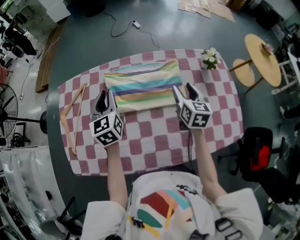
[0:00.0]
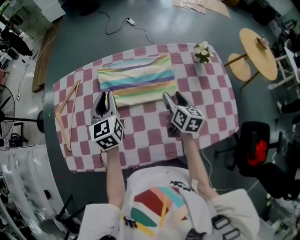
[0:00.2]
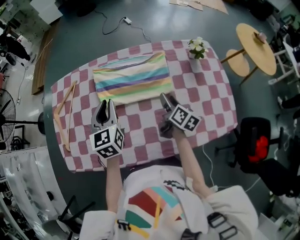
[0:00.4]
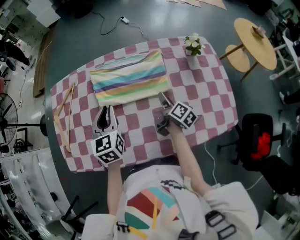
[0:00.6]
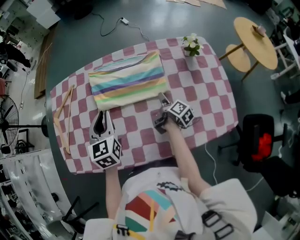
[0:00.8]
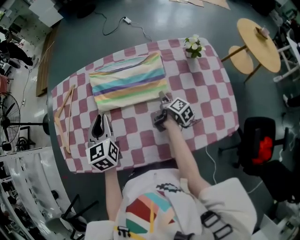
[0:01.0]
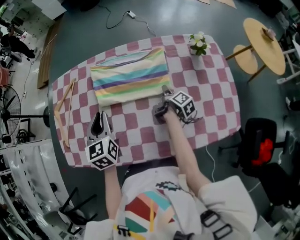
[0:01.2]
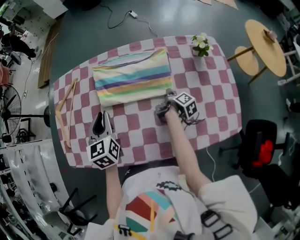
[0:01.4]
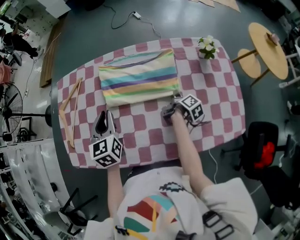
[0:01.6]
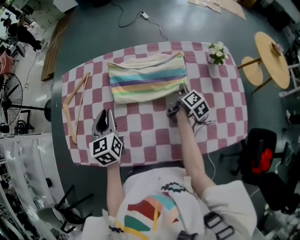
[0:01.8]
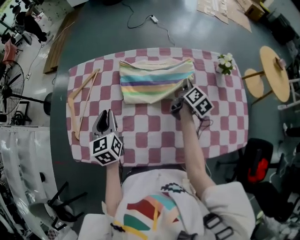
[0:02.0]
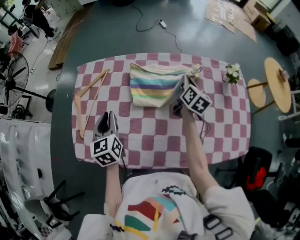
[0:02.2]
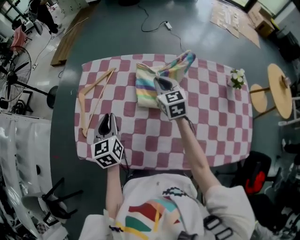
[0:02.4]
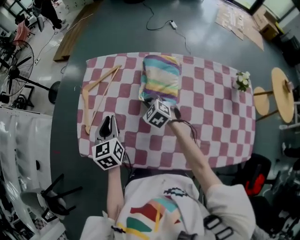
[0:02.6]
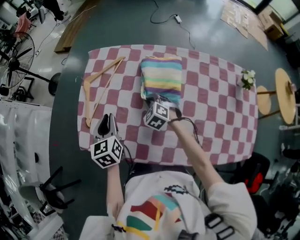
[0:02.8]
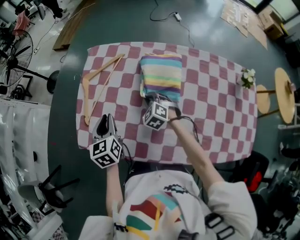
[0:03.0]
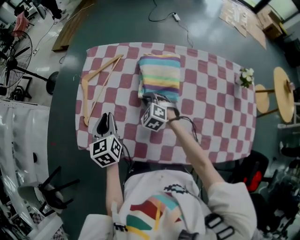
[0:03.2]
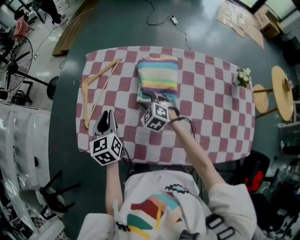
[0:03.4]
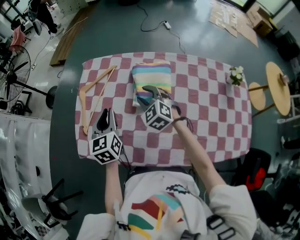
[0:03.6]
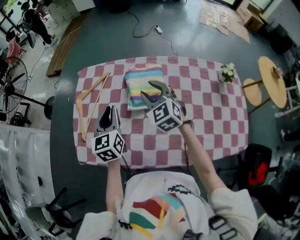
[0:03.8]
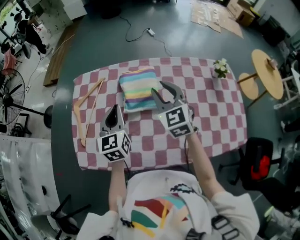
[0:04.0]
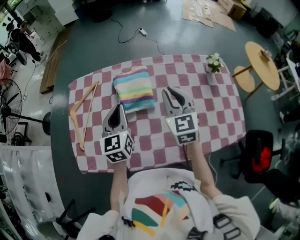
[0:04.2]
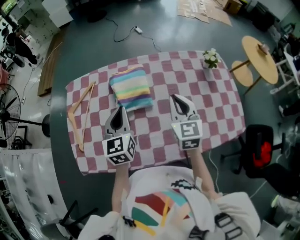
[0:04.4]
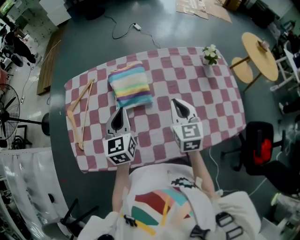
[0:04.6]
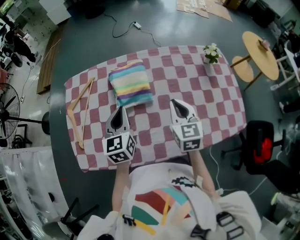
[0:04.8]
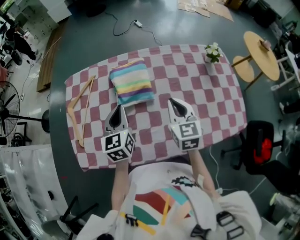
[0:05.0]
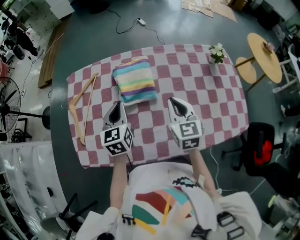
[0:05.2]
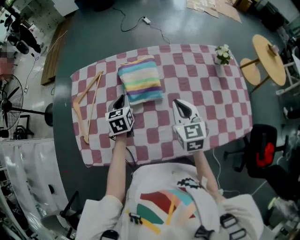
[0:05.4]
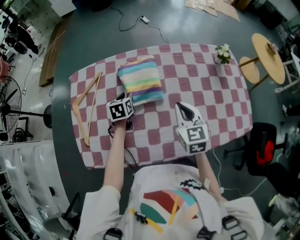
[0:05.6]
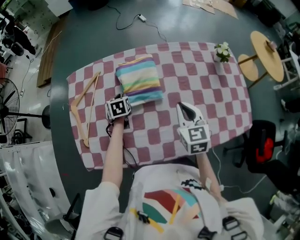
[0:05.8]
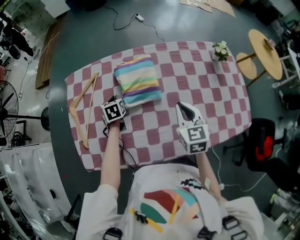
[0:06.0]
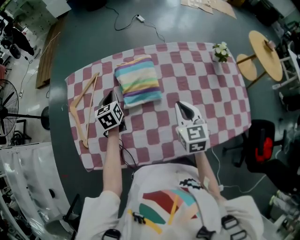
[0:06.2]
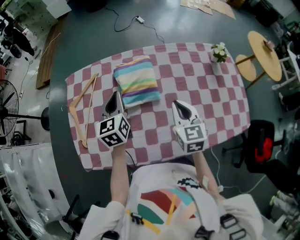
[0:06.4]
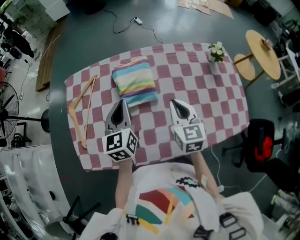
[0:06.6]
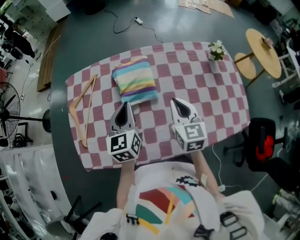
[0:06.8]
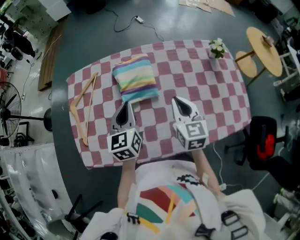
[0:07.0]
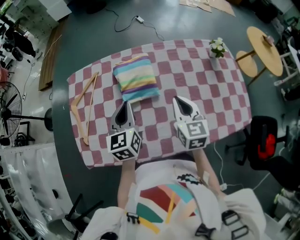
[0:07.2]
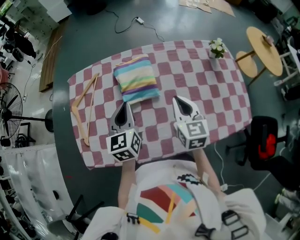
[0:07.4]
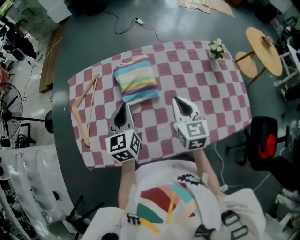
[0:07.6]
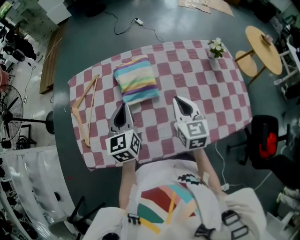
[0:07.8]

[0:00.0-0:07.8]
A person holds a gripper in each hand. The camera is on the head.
0:00.0 to 0:01.6: The left gripper goes roughly 10 cm backward. Meanwhile the right gripper travels downward by roughly 20 cm, rolls clockwise, seen from behind, by roughly 70 degrees, and closes its fingers.
0:01.6 to 0:03.2: The right gripper reaches roughly 15 cm upward, then returns, and twists approximately 140 degrees counterclockwise, seen from behind. Meanwhile the left gripper ends up roughly 20 cm from where it was.
0:03.2 to 0:04.6: The right gripper ends up roughly 30 cm from where it was, rotates about 70 degrees, and opens, then closes again. Meanwhile the left gripper changes place by some 20 cm, and rotates roughly 30 degrees.
0:04.6 to 0:06.2: The left gripper goes approximately 20 cm downward, forward and to the left, and opens, then closes again.
0:06.2 to 0:07.8: The left gripper goes approximately 20 cm upward, backward and to the right.

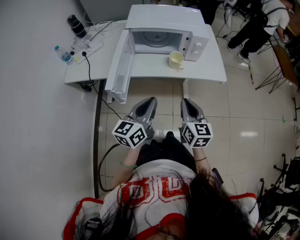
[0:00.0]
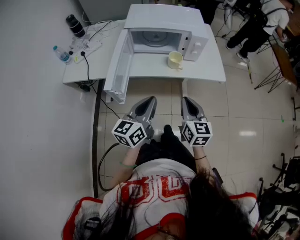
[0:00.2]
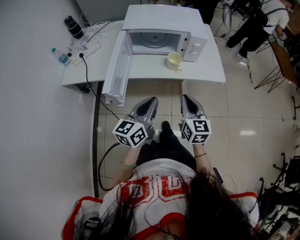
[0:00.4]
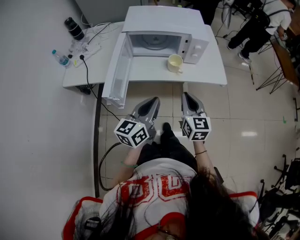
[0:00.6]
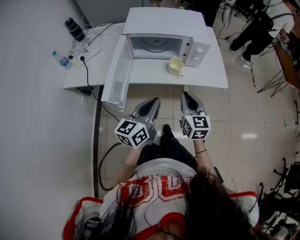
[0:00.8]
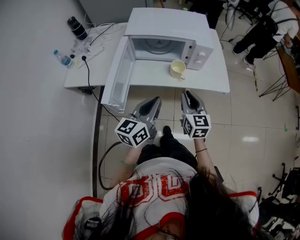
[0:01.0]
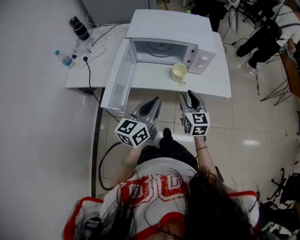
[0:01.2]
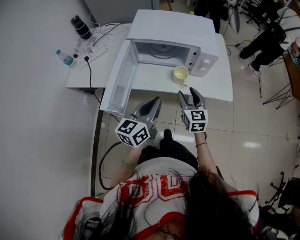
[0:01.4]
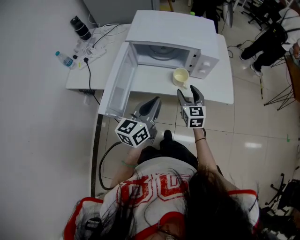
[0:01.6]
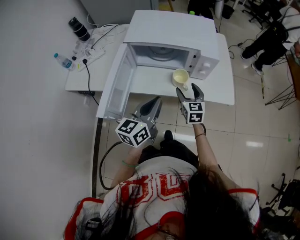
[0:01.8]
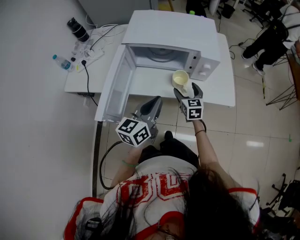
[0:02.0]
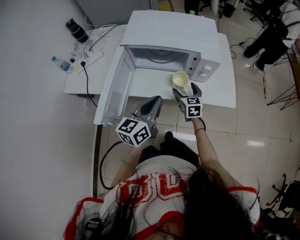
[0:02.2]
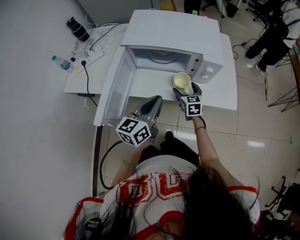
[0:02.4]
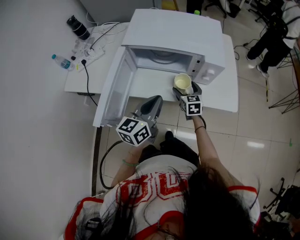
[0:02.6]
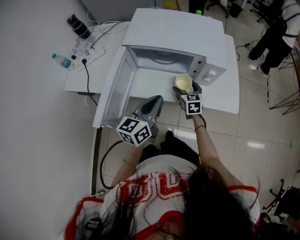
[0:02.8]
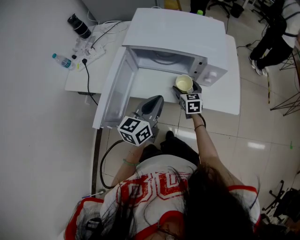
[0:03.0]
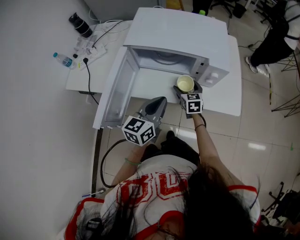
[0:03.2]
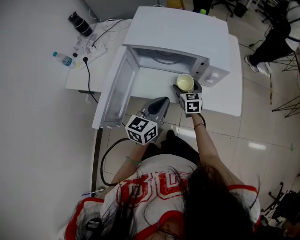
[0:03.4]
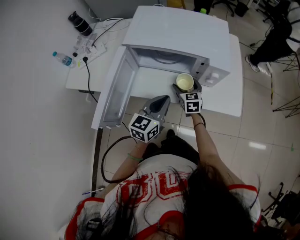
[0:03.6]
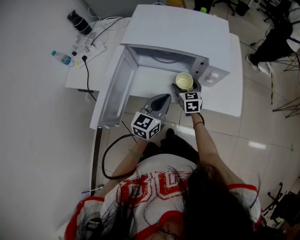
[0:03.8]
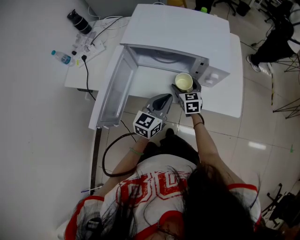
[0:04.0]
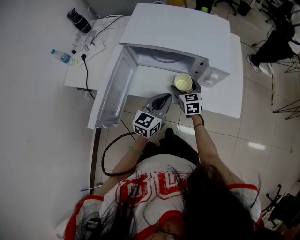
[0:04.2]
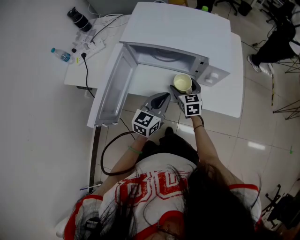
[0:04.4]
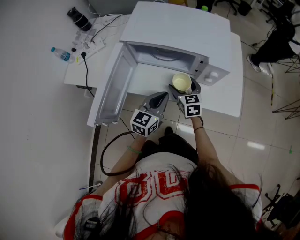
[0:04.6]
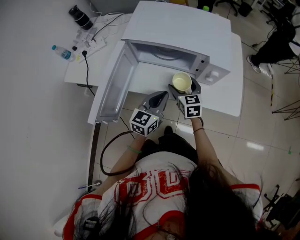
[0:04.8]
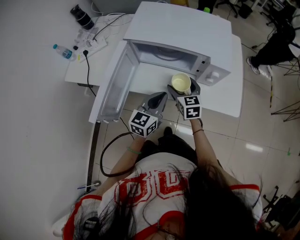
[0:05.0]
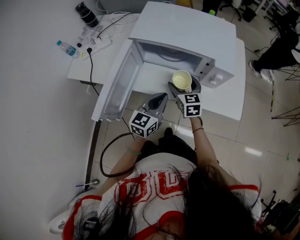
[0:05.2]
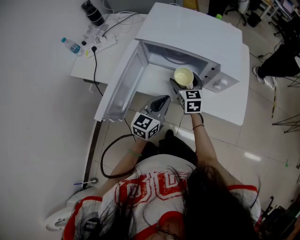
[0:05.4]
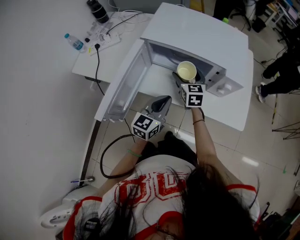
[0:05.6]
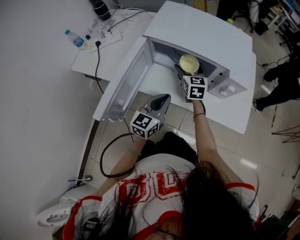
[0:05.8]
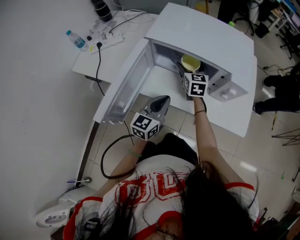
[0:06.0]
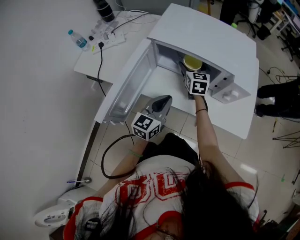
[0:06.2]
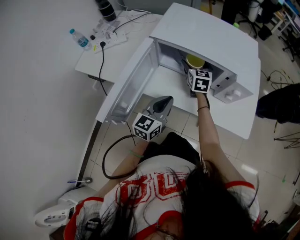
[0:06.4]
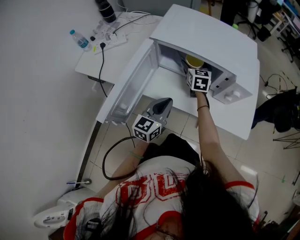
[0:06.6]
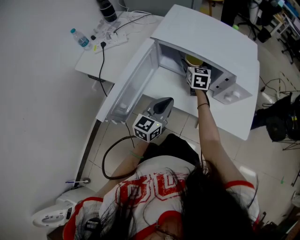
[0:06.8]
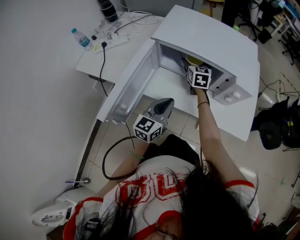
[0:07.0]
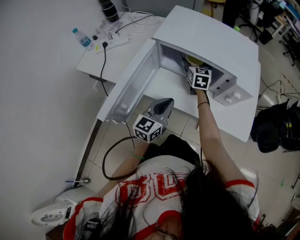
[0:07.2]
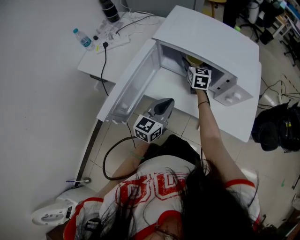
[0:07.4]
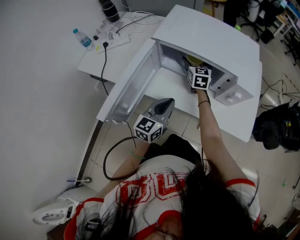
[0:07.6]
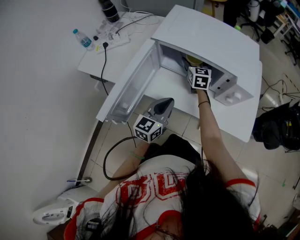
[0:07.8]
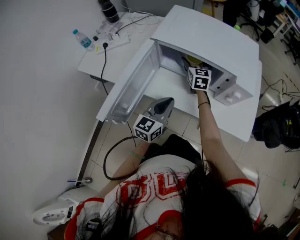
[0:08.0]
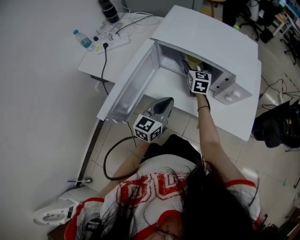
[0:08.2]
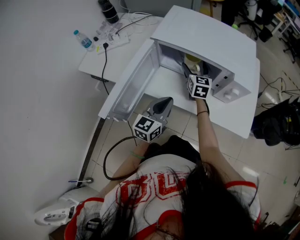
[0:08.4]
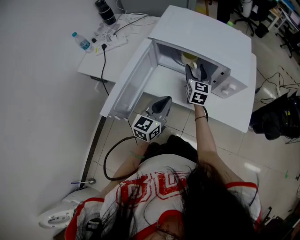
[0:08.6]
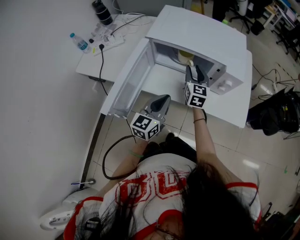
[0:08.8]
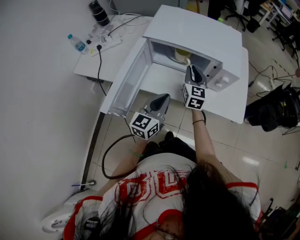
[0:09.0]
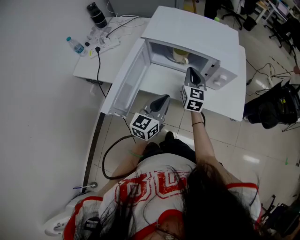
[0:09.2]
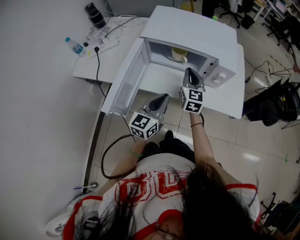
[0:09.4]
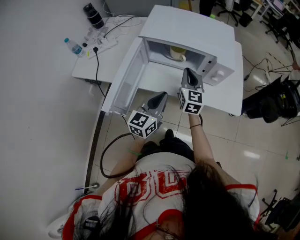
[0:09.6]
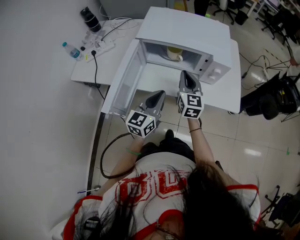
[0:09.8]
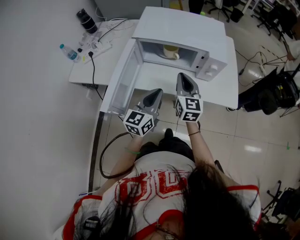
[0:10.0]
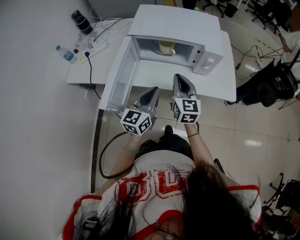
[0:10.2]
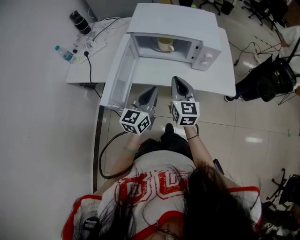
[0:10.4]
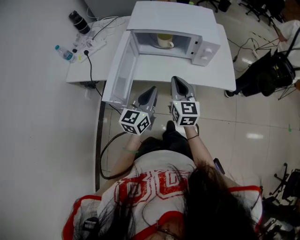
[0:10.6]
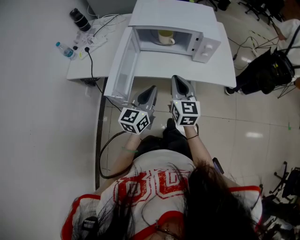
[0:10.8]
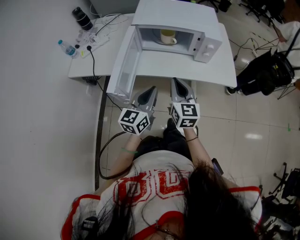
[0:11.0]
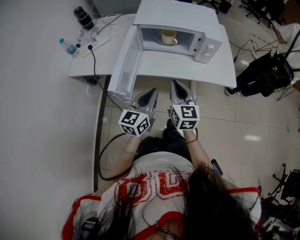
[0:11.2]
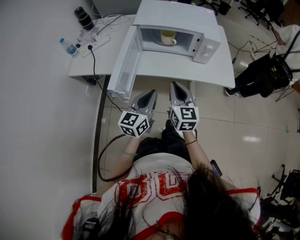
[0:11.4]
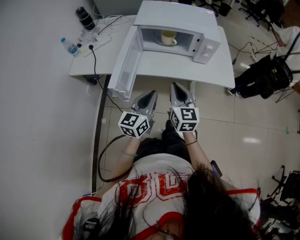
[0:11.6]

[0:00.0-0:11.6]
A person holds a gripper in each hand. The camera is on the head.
0:00.0 to 0:01.4: The right gripper heads forward, covering about 15 cm, and opens, while the left gripper shifts roughly 10 cm forward.
0:01.4 to 0:02.8: The left gripper travels forward by approximately 10 cm. Meanwhile the right gripper moves forward and downward, about 15 cm, and opens up.
0:02.8 to 0:04.4: The left gripper goes roughly 10 cm downward.
0:04.4 to 0:05.8: The left gripper travels to the left by approximately 5 cm. The right gripper moves forward, to the left and upward, roughly 15 cm.
0:05.8 to 0:07.2: The right gripper goes some 5 cm forward.
0:07.2 to 0:08.8: The right gripper moves backward, some 10 cm, and closes up.
0:08.8 to 0:10.2: The right gripper heads backward and upward, covering approximately 15 cm, and closes. Meanwhile the left gripper ends up about 5 cm from where it was.
0:10.2 to 0:11.6: The two grippers go some 10 cm backward.

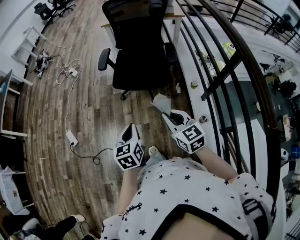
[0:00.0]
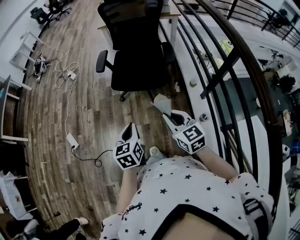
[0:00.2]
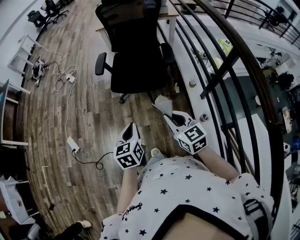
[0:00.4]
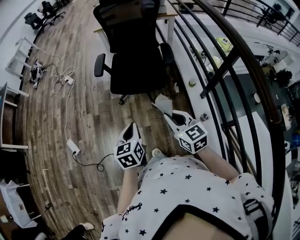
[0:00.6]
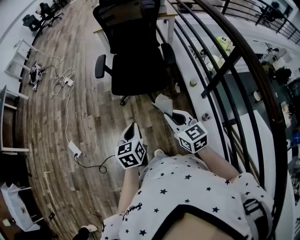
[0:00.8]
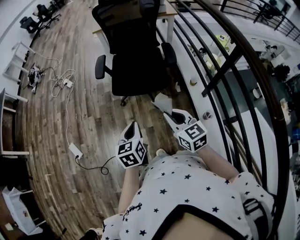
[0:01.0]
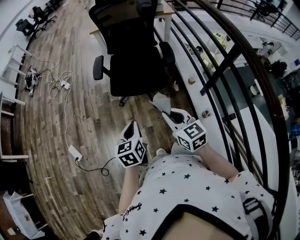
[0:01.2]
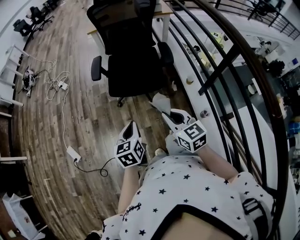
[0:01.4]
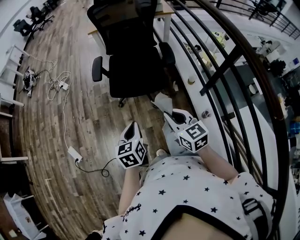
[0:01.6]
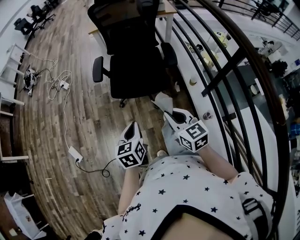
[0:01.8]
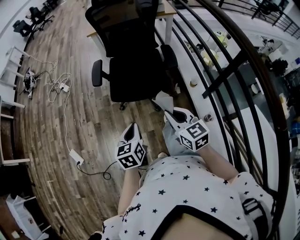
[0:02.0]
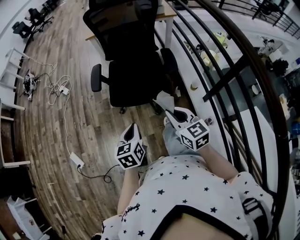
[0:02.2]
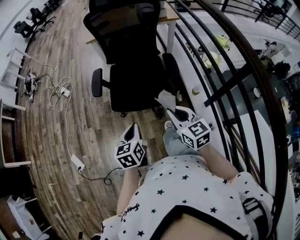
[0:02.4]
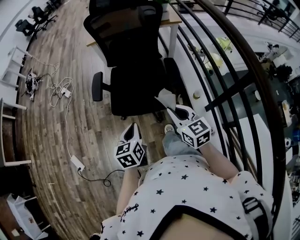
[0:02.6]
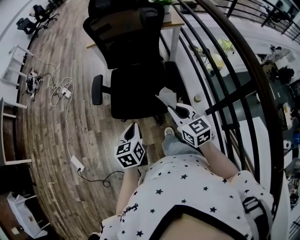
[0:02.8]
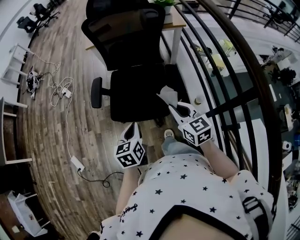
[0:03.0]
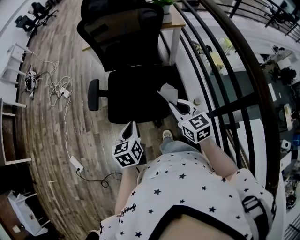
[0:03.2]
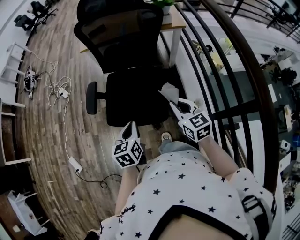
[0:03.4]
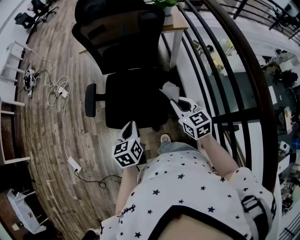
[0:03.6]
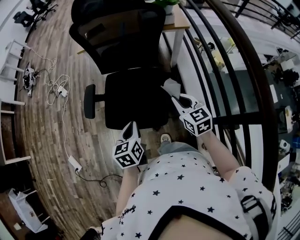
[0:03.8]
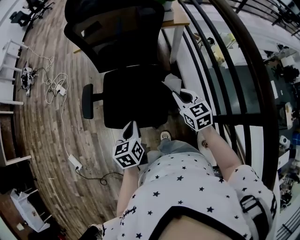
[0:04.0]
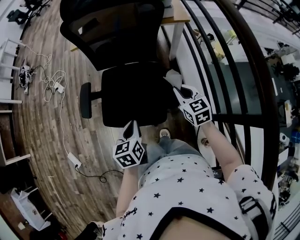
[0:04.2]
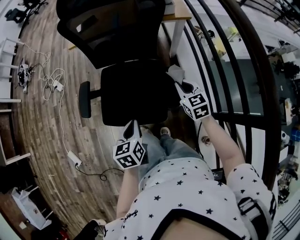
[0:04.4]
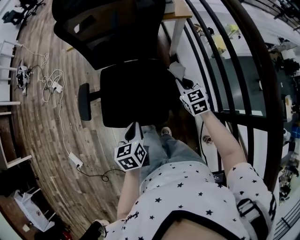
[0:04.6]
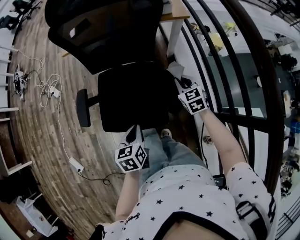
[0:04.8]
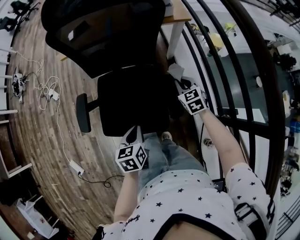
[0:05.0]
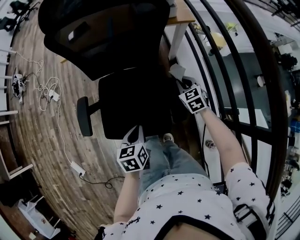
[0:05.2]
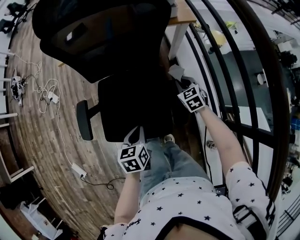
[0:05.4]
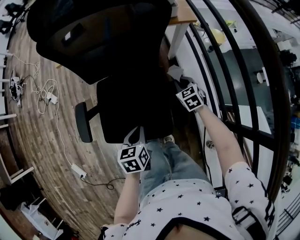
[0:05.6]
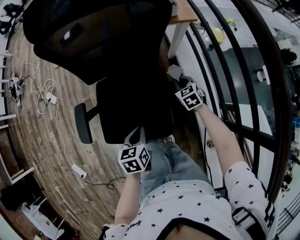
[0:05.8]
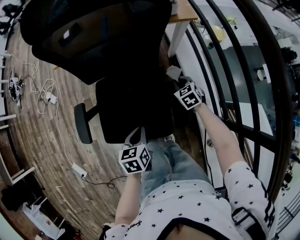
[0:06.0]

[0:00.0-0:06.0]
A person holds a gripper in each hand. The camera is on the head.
0:00.0 to 0:01.6: The grippers both shift forward by approximately 10 cm.
0:01.6 to 0:03.0: Both grippers move forward and to the right, roughly 25 cm.
0:03.0 to 0:04.4: The left gripper travels forward and to the right by some 10 cm; the right gripper goes approximately 25 cm forward, to the right and downward.
0:04.4 to 0:06.0: The left gripper goes roughly 10 cm forward and downward; the right gripper shifts about 20 cm downward and forward.
